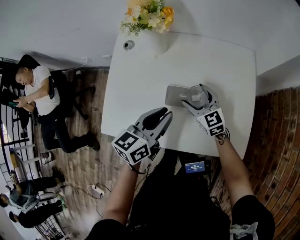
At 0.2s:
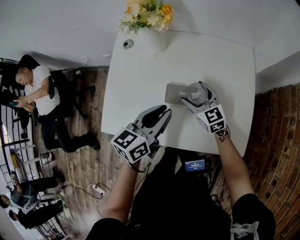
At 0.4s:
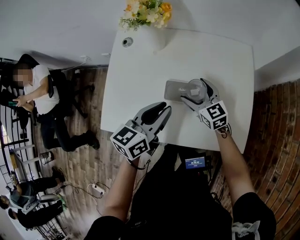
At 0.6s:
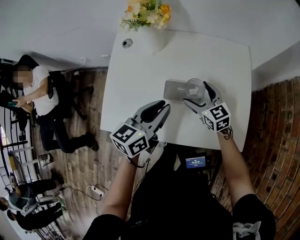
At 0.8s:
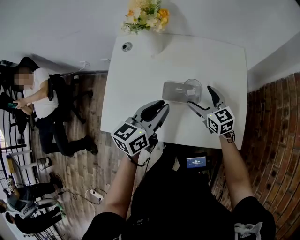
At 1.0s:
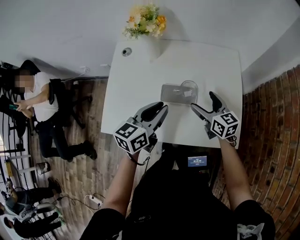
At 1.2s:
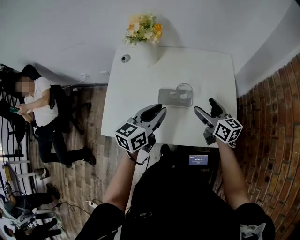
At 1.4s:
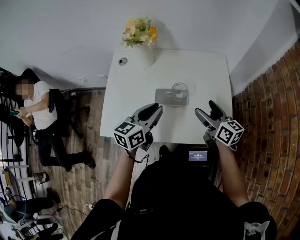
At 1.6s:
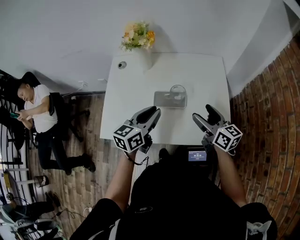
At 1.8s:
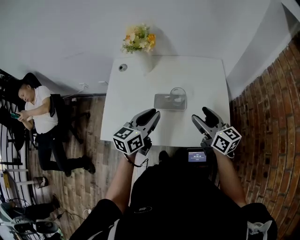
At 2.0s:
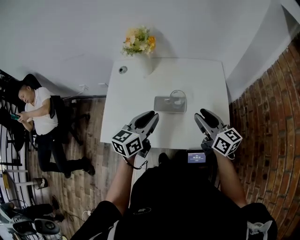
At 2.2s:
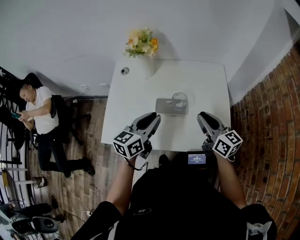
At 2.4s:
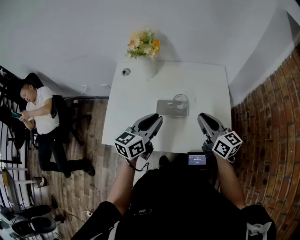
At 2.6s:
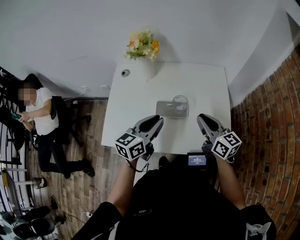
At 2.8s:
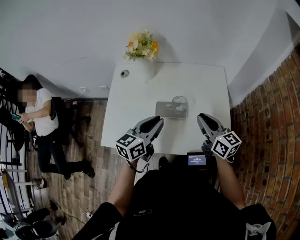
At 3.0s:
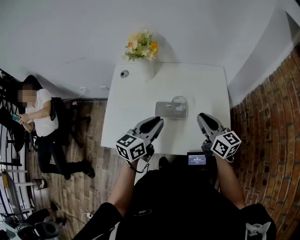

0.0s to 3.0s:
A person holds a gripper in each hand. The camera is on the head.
0.0s to 1.6s: The right gripper goes roughly 20 cm upward, backward and to the right, and rotates about 40 degrees.
1.6s to 3.0s: The right gripper closes.

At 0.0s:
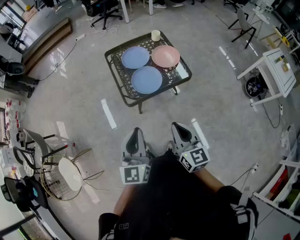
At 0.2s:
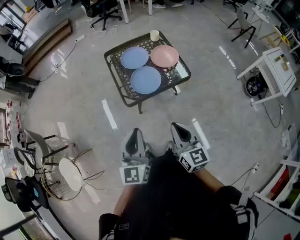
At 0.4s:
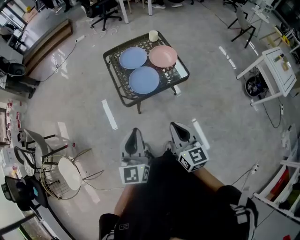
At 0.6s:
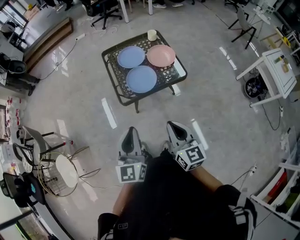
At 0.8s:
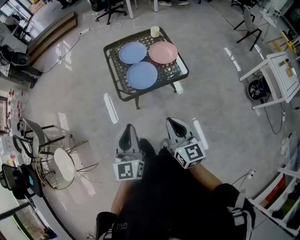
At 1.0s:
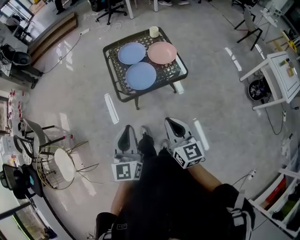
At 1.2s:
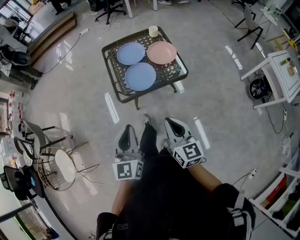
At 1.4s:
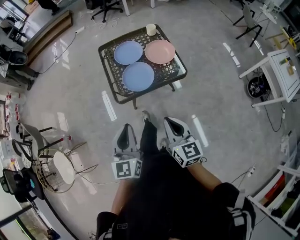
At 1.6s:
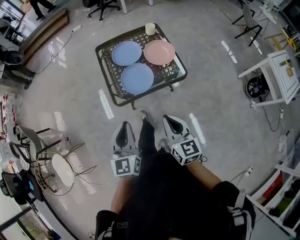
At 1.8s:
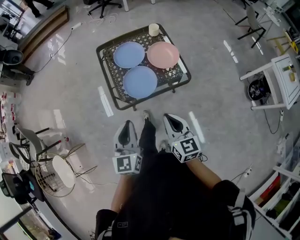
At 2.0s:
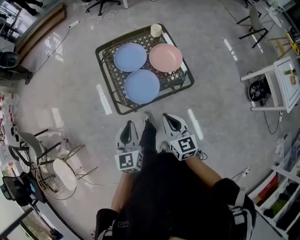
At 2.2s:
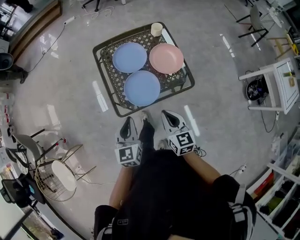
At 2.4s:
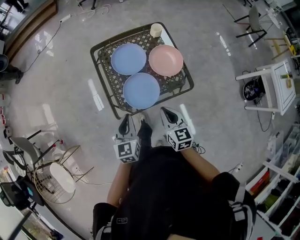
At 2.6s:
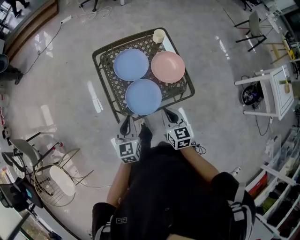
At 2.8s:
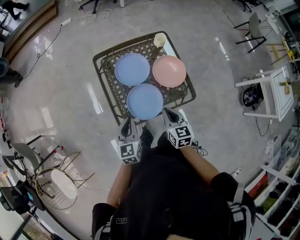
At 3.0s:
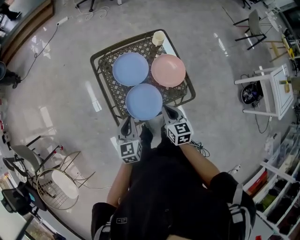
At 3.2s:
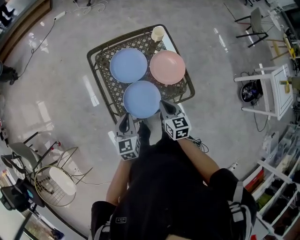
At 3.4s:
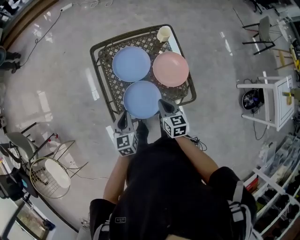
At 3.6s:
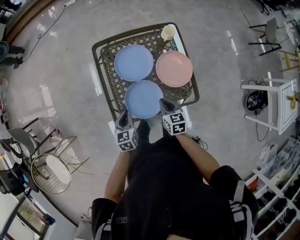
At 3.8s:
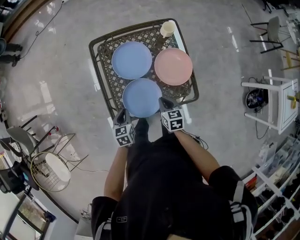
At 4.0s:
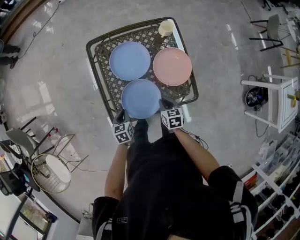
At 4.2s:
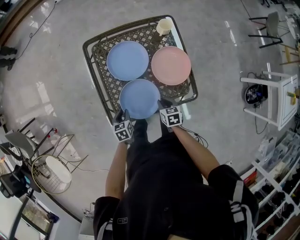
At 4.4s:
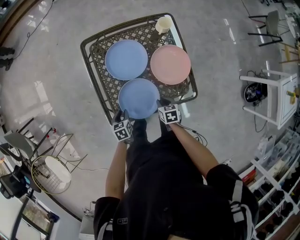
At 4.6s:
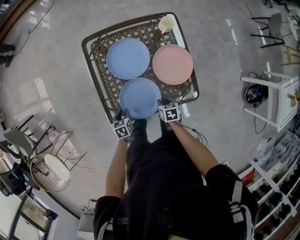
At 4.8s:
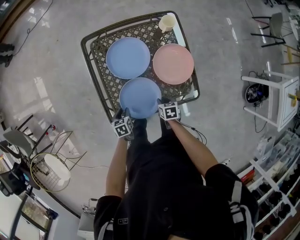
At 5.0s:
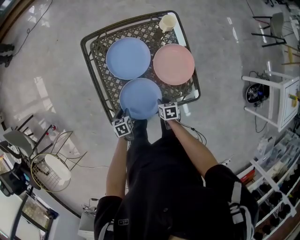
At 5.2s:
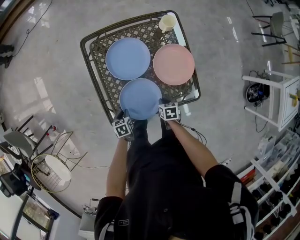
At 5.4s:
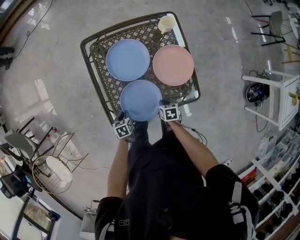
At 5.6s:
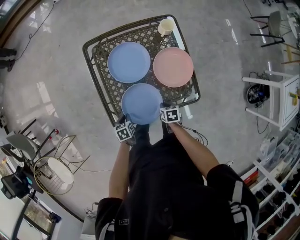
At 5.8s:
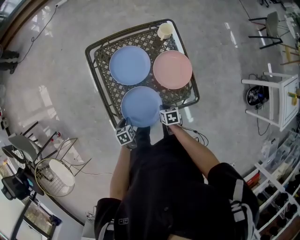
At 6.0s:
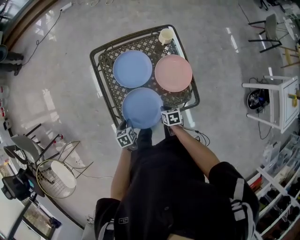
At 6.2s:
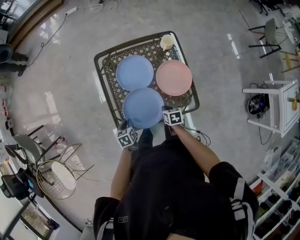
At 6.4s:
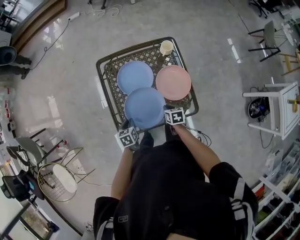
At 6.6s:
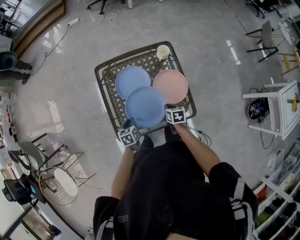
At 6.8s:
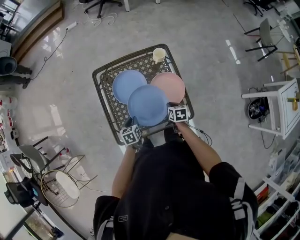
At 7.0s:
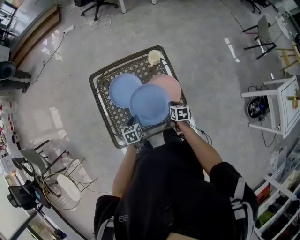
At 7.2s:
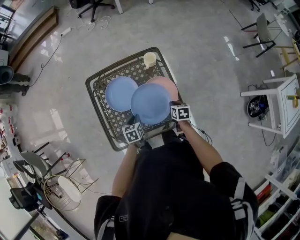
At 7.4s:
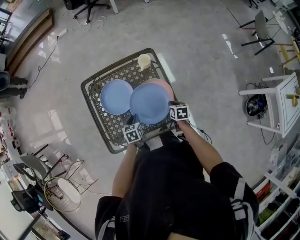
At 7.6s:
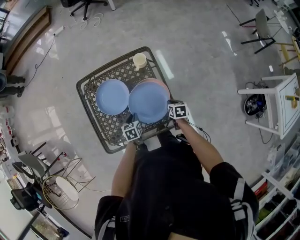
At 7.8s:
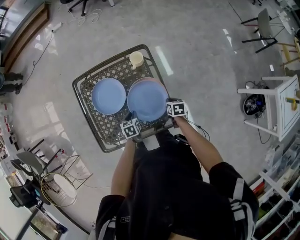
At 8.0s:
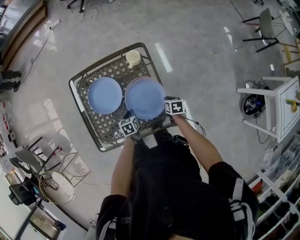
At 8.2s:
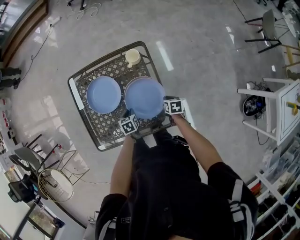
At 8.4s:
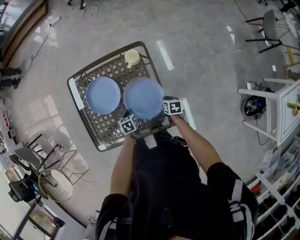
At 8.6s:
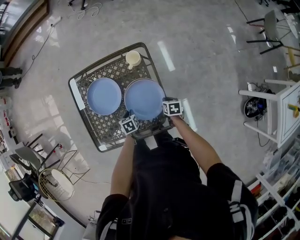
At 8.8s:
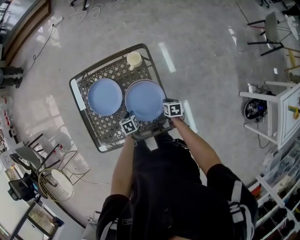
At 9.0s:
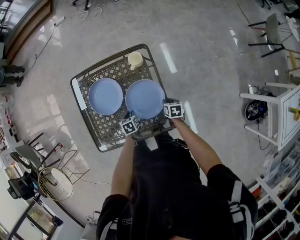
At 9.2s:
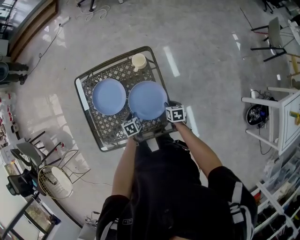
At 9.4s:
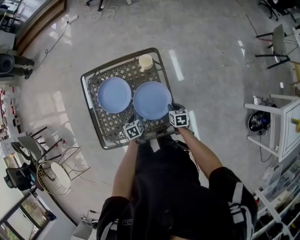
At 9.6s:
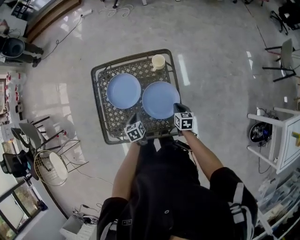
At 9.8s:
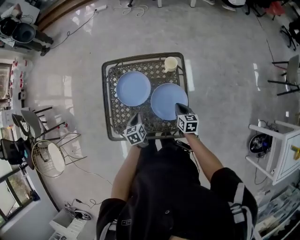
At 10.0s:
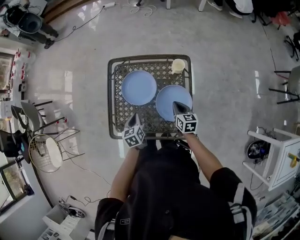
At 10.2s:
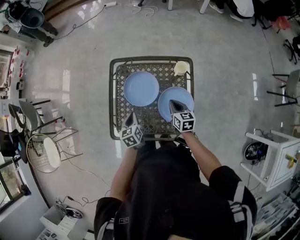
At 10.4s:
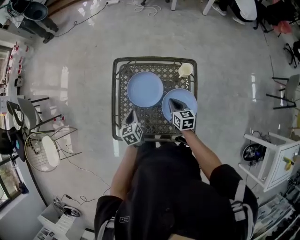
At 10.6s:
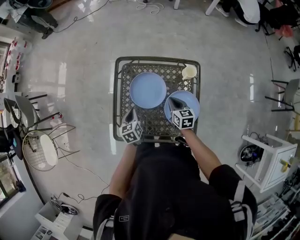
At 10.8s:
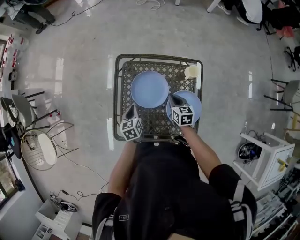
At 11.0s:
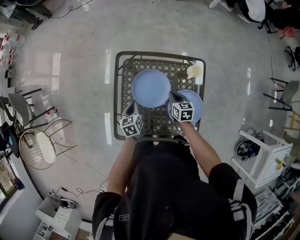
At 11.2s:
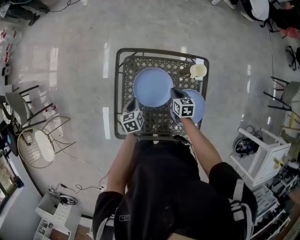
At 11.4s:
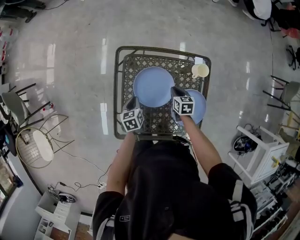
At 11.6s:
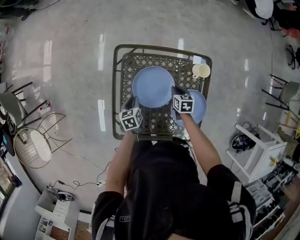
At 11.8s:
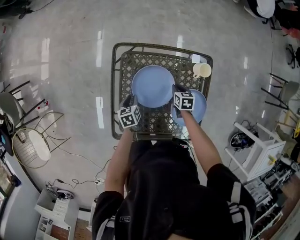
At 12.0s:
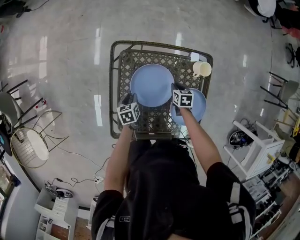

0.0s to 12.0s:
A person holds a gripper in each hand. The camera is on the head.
0.0s to 1.6s: The right gripper is displaced forward, to the right and downward by roughly 10 cm; the left gripper heads forward, downward and to the right, covering approximately 10 cm.
1.6s to 3.0s: Both grippers move forward and downward, about 30 cm.
3.0s to 4.4s: The grippers both shift downward by approximately 25 cm. The right gripper rotates roughly 30 degrees; the left gripper tilts its fingers roughly 30 degrees downward, and opens up.
4.4s to 6.0s: The grippers stay close to where they were, moving slightly.
6.0s to 7.6s: Both grippers travel together to the right and forward, about 25 cm.
7.6s to 9.0s: Both grippers travel together downward, about 5 cm.
9.0s to 10.4s: The left gripper shifts roughly 25 cm to the left and upward, and rotates about 30 degrees. Meanwhile the right gripper moves to the left, upward and forward, about 25 cm, and swivels roughly 30 degrees.
10.4s to 12.0s: Both grippers travel together downward and forward, roughly 20 cm. The left gripper rotates about 20 degrees, and opens up. Meanwhile the right gripper changes its angle by roughly 30 degrees.

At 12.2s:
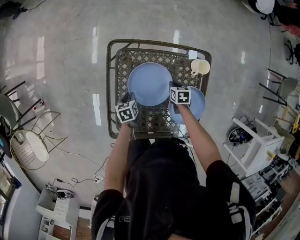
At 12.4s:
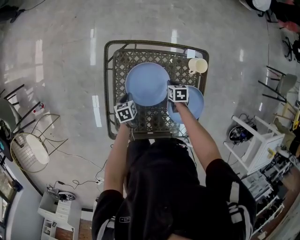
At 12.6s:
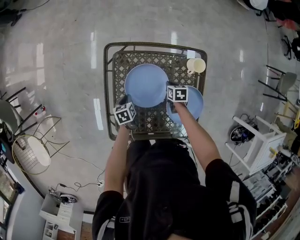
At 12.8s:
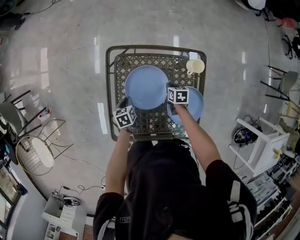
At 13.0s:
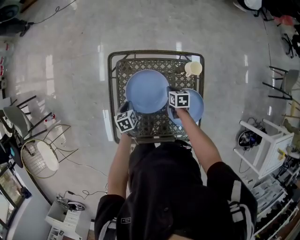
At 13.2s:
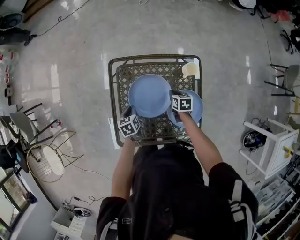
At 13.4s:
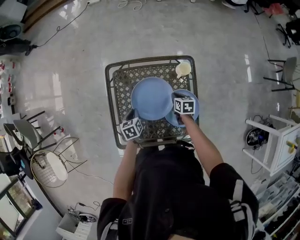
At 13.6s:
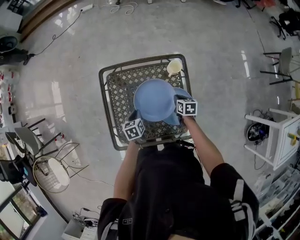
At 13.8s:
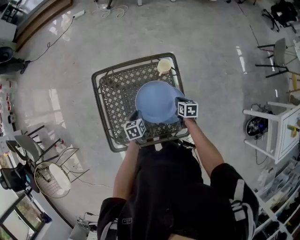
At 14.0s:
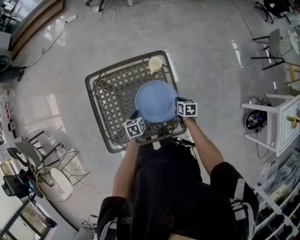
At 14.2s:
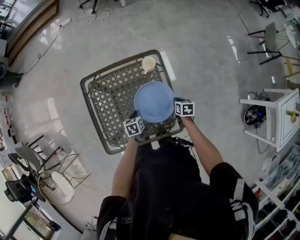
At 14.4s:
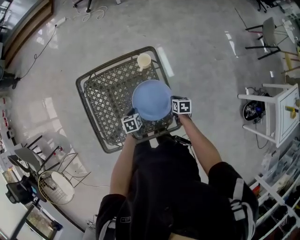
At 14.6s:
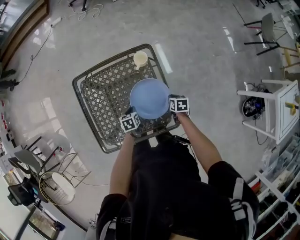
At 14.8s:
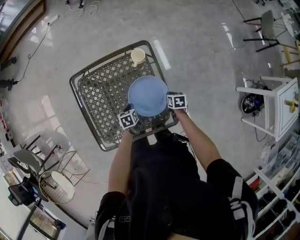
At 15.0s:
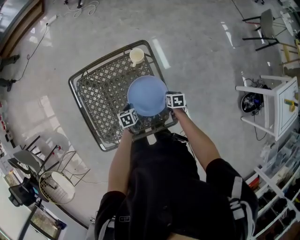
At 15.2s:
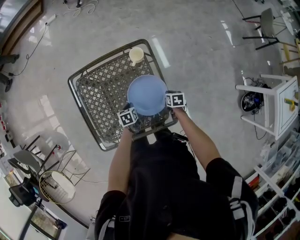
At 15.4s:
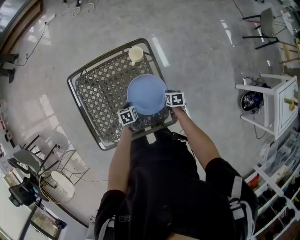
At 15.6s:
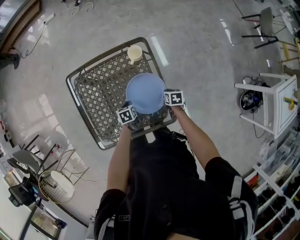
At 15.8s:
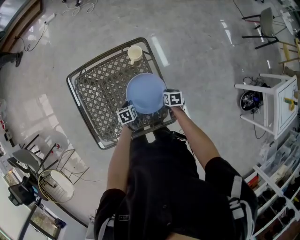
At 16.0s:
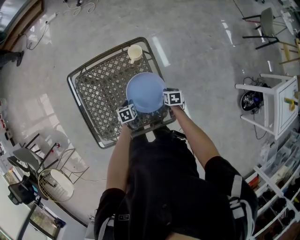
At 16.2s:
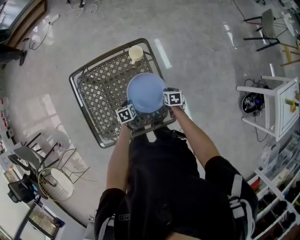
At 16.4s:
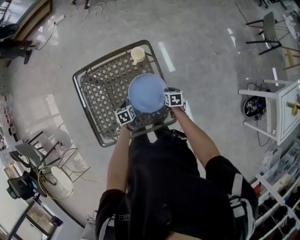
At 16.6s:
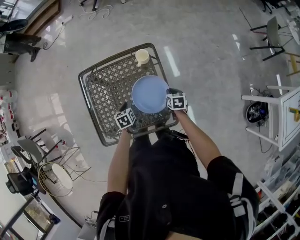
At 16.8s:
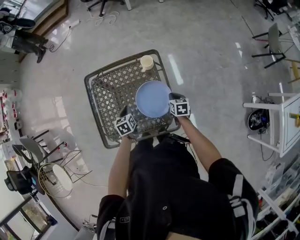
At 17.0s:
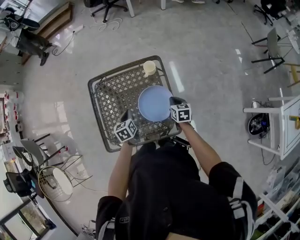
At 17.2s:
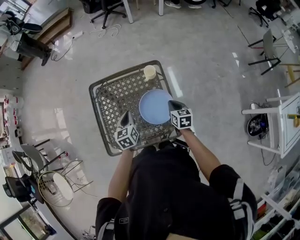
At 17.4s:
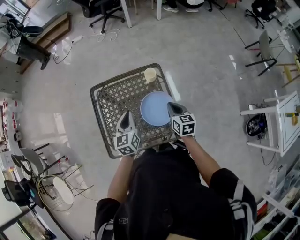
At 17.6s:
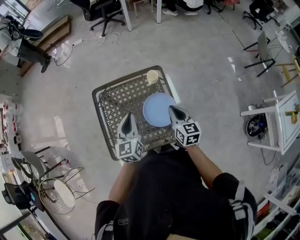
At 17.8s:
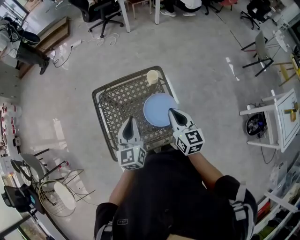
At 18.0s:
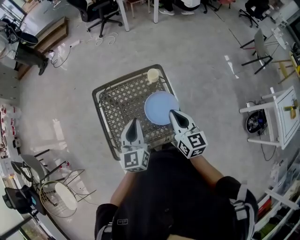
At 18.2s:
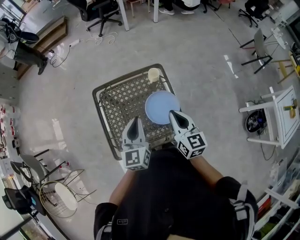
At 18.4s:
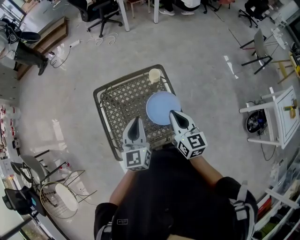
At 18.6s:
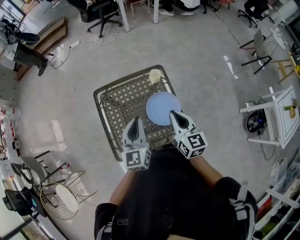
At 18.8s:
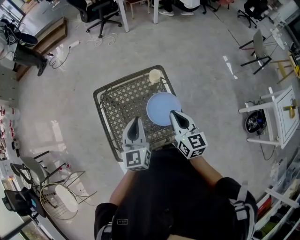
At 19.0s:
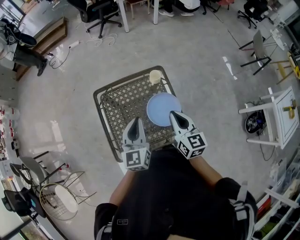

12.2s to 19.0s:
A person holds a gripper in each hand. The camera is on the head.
12.2s to 13.6s: The left gripper heads upward, to the right and backward, covering about 15 cm. Meanwhile the right gripper goes roughly 20 cm to the right, upward and backward.
13.6s to 15.0s: The left gripper heads to the right and downward, covering approximately 15 cm; the right gripper goes approximately 15 cm to the right, backward and downward.
15.0s to 16.2s: Both grippers stay put.
16.2s to 17.6s: The grippers both shift upward by approximately 35 cm. The left gripper angles its fingers upward, by some 50 degrees, and closes up. Meanwhile the right gripper tips its fingers upward by about 40 degrees.
17.6s to 19.0s: The right gripper heads upward, covering roughly 5 cm.

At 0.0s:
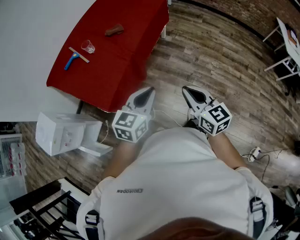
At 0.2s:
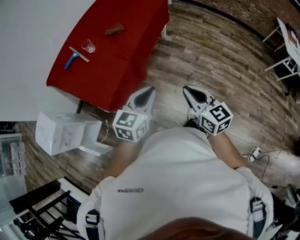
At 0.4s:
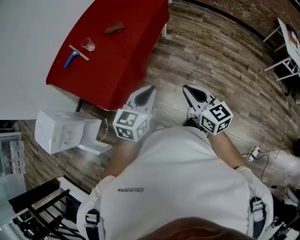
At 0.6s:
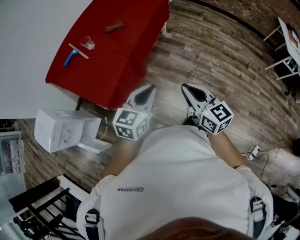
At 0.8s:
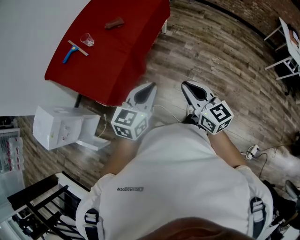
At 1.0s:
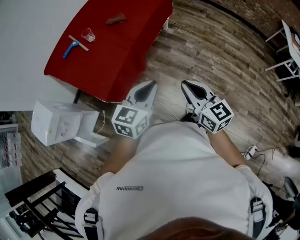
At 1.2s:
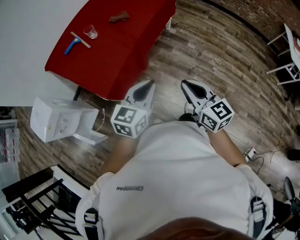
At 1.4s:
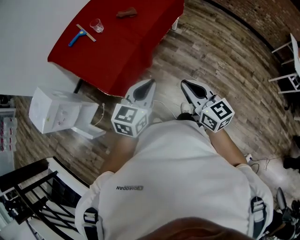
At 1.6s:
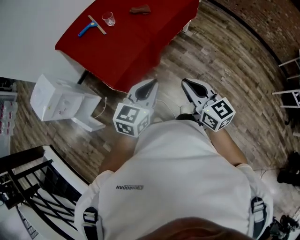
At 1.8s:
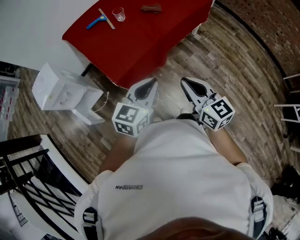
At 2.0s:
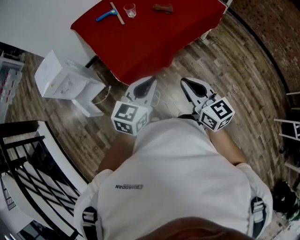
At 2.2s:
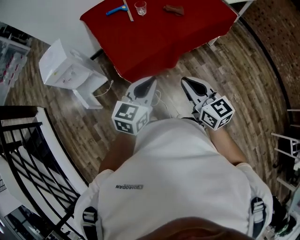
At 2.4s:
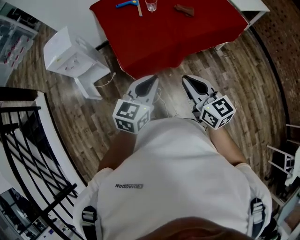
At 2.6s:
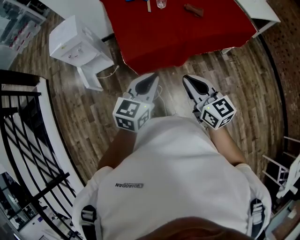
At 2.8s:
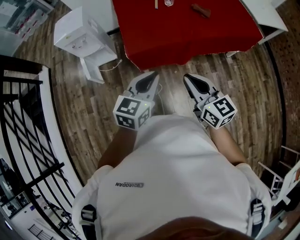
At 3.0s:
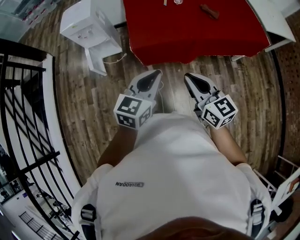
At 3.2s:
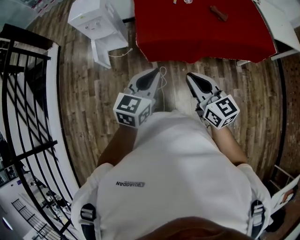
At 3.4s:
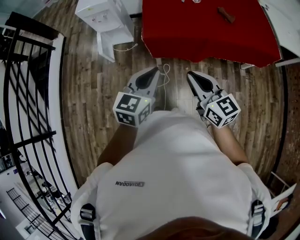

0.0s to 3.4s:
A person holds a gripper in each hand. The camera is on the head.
0.0s to 1.6s: The right gripper moves to the left, about 5 cm.
1.6s to 3.4s: The left gripper rotates roughly 50 degrees. The right gripper swivels approximately 50 degrees.
